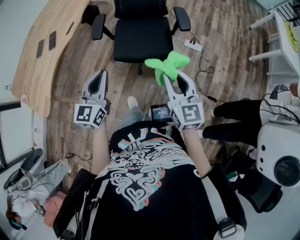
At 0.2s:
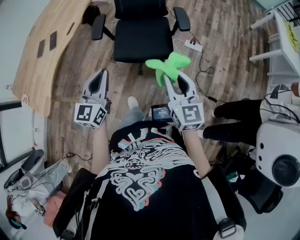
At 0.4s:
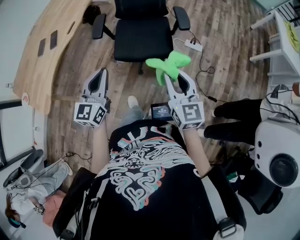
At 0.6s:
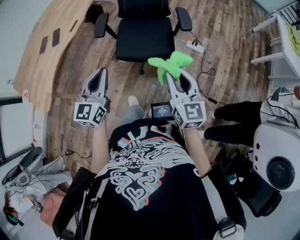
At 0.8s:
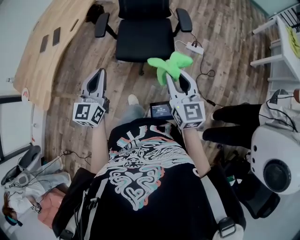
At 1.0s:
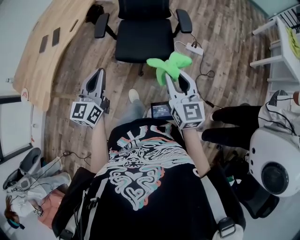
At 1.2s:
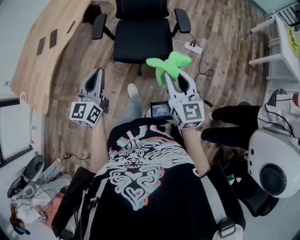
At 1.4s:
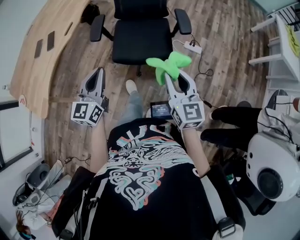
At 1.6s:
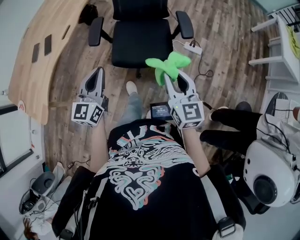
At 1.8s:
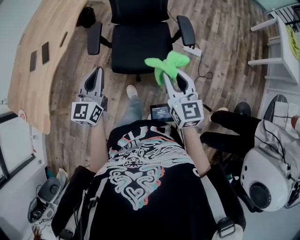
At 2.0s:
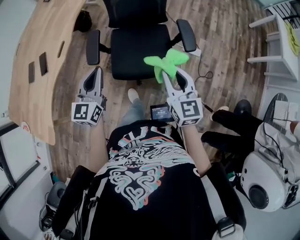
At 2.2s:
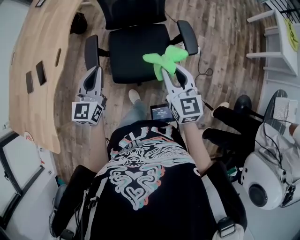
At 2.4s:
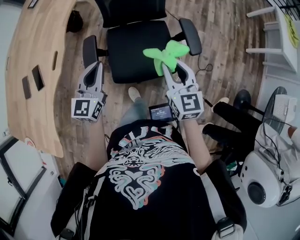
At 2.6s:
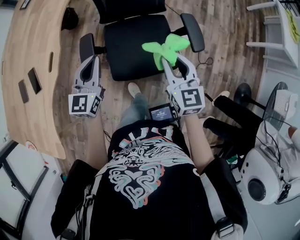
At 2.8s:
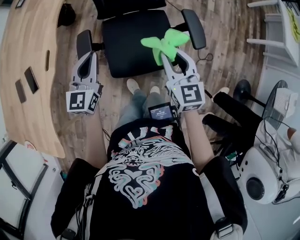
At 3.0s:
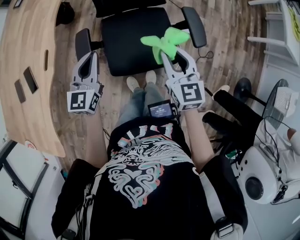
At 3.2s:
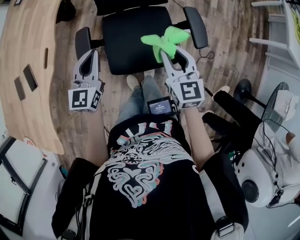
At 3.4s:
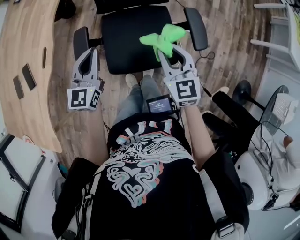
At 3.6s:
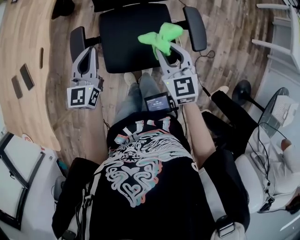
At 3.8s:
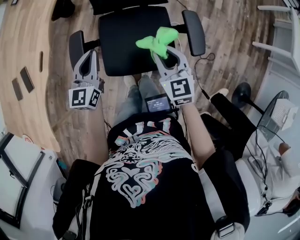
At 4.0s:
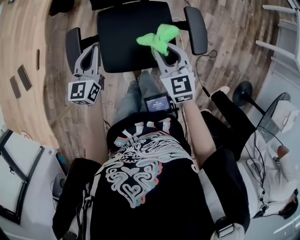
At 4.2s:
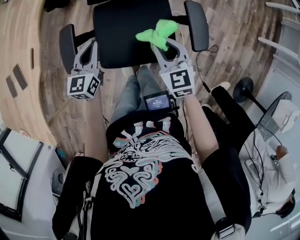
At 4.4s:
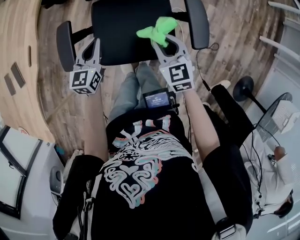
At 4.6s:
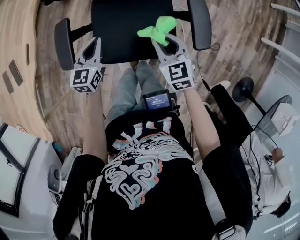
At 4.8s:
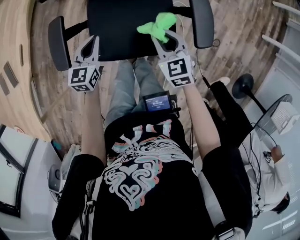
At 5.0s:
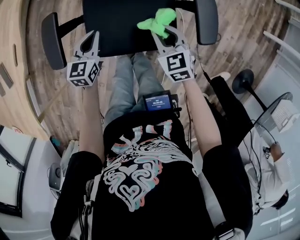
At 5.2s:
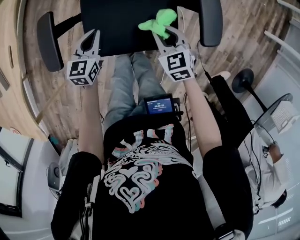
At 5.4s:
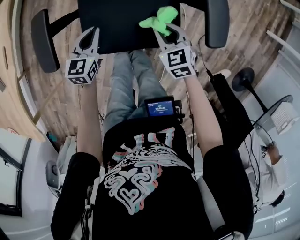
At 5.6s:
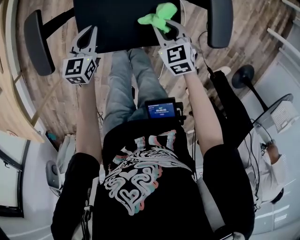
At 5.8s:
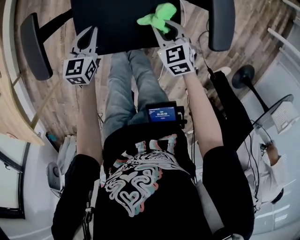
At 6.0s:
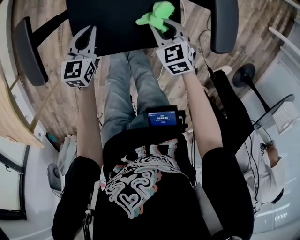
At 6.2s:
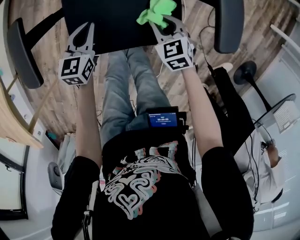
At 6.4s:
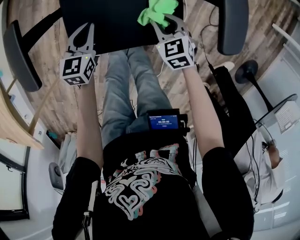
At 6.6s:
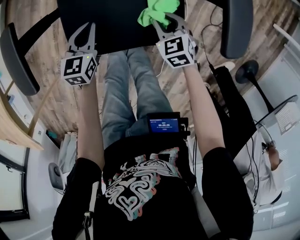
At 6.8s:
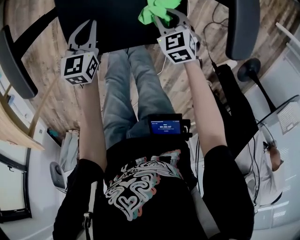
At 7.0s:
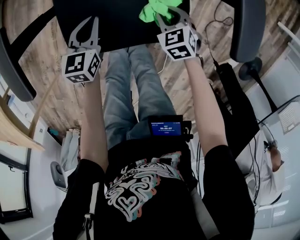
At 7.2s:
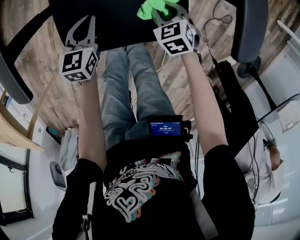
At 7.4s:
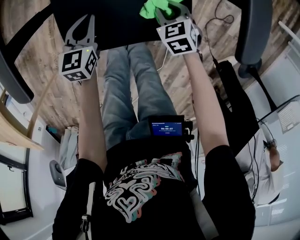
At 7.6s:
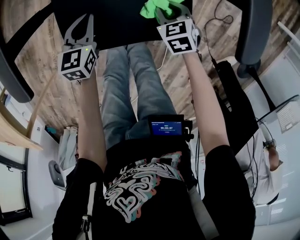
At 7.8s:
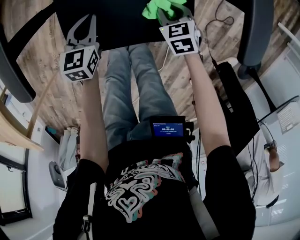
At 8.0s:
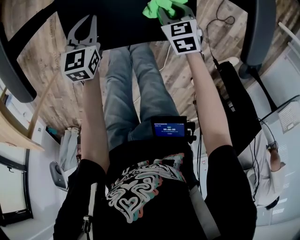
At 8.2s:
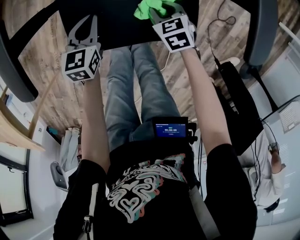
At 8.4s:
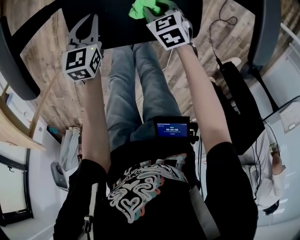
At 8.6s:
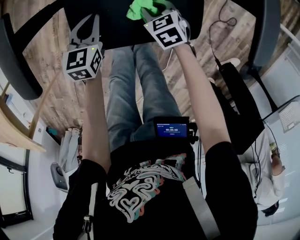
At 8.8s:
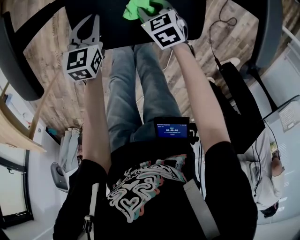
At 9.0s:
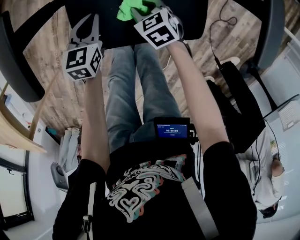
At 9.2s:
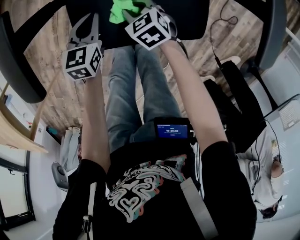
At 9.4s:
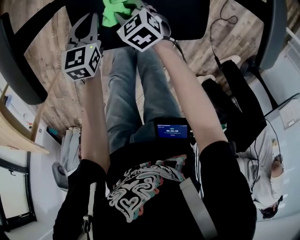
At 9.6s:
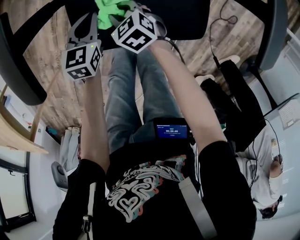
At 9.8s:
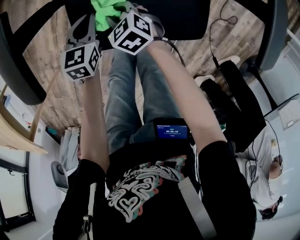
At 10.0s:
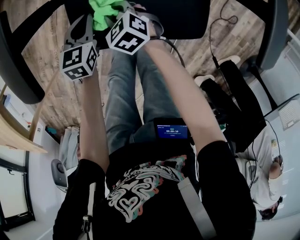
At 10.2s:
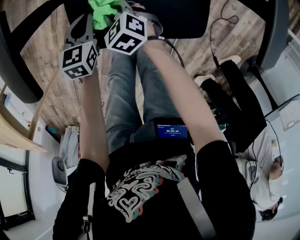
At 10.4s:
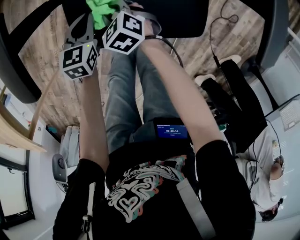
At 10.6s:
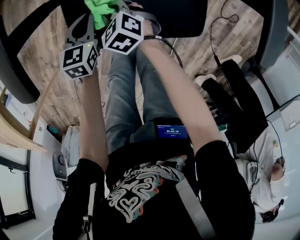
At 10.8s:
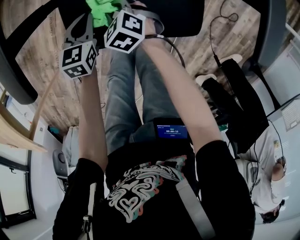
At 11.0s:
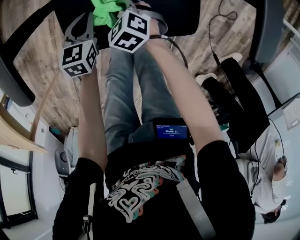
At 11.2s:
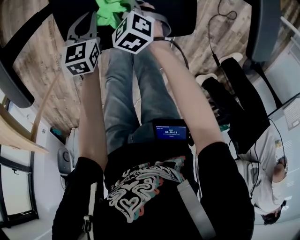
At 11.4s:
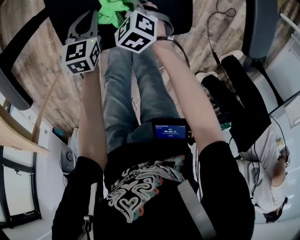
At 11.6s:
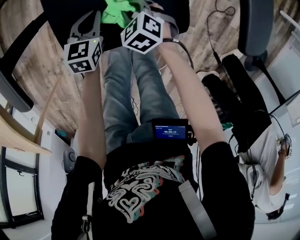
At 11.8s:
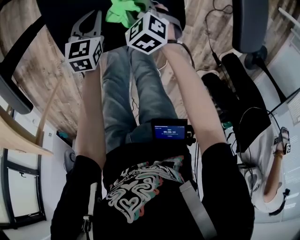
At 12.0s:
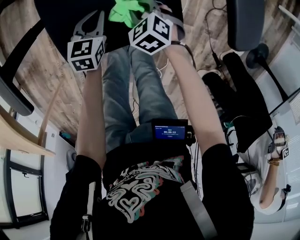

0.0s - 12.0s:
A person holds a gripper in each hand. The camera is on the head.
0.0s - 1.6s: The grippers both shift forward by some 5 cm.
1.6s - 3.0s: The grippers both shift forward by roughly 25 cm.
3.0s - 4.4s: The right gripper travels downward by some 15 cm, and changes its angle by some 20 degrees. The left gripper shifts some 15 cm downward and to the right.
4.4s - 6.0s: Both grippers travel together downward, approximately 20 cm.
6.0s - 7.6s: Both grippers move downward, about 10 cm.
7.6s - 9.0s: The right gripper travels to the left by about 10 cm.
9.0s - 10.4s: The right gripper heads to the left, covering about 10 cm.
10.4s - 12.0s: The left gripper shifts roughly 10 cm to the right, while the right gripper is displaced to the right by some 15 cm.

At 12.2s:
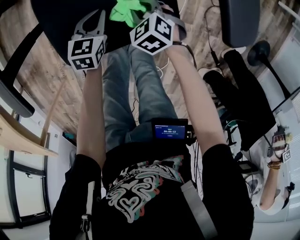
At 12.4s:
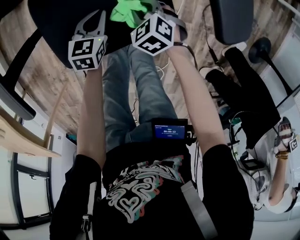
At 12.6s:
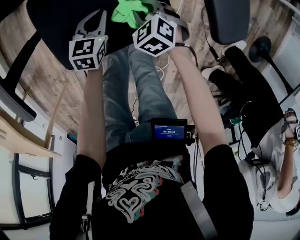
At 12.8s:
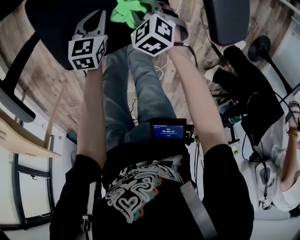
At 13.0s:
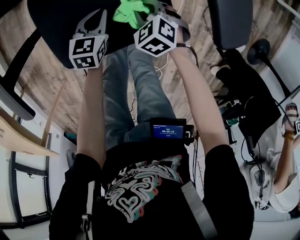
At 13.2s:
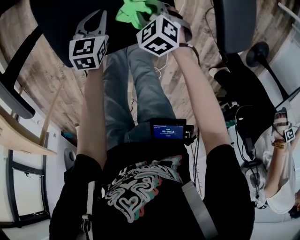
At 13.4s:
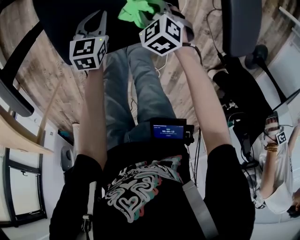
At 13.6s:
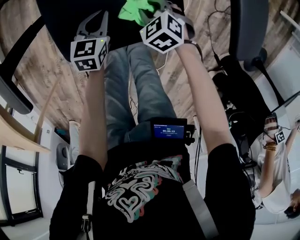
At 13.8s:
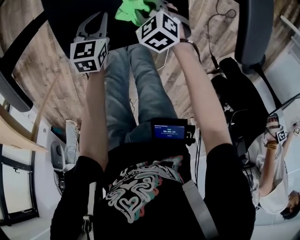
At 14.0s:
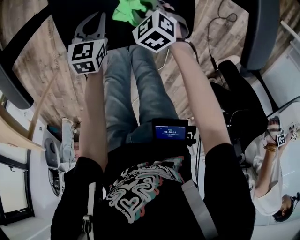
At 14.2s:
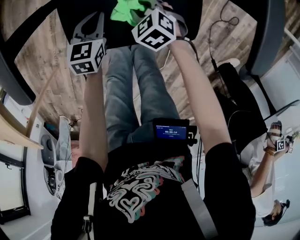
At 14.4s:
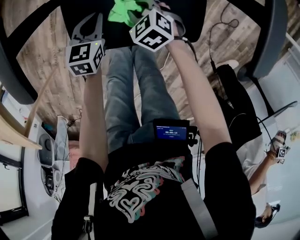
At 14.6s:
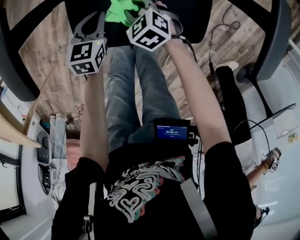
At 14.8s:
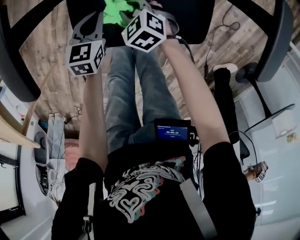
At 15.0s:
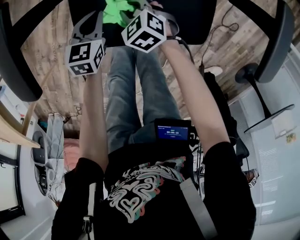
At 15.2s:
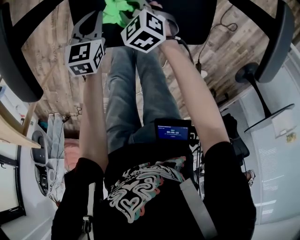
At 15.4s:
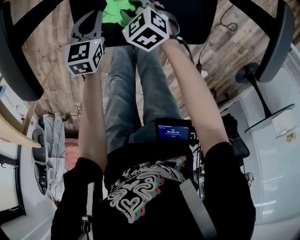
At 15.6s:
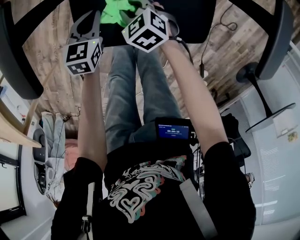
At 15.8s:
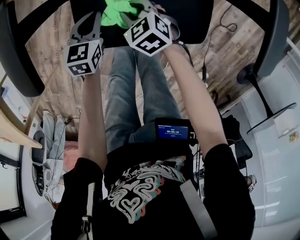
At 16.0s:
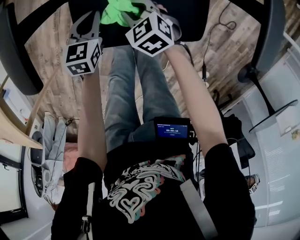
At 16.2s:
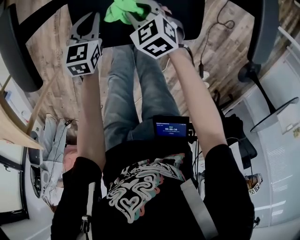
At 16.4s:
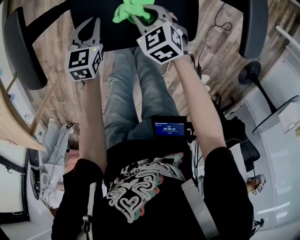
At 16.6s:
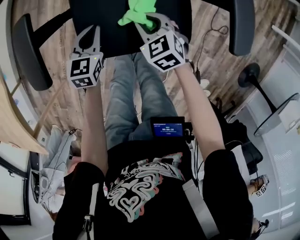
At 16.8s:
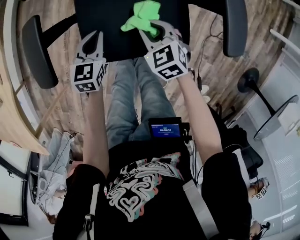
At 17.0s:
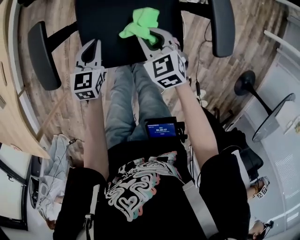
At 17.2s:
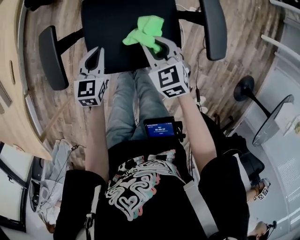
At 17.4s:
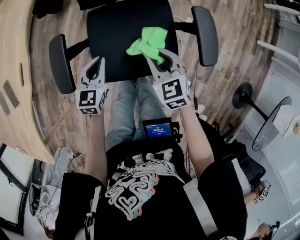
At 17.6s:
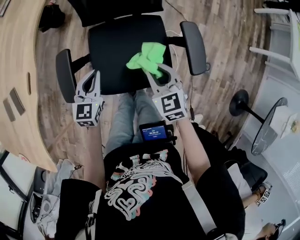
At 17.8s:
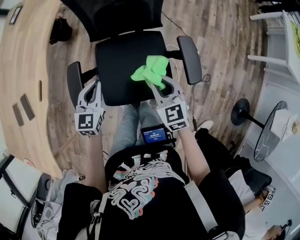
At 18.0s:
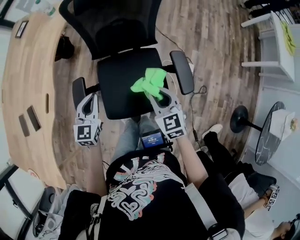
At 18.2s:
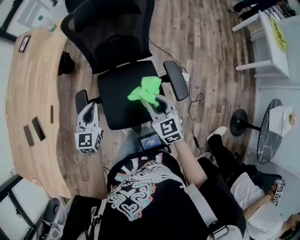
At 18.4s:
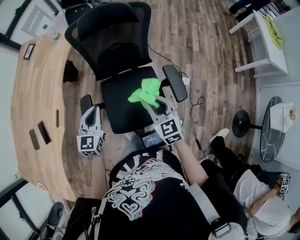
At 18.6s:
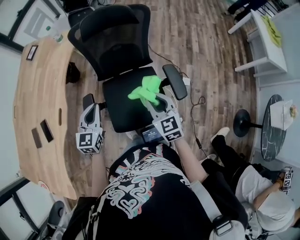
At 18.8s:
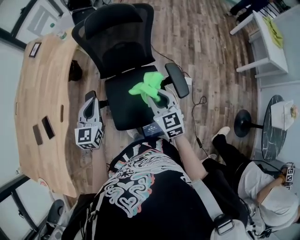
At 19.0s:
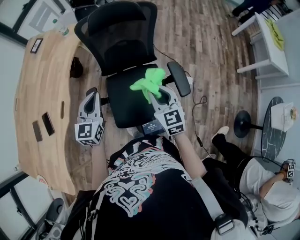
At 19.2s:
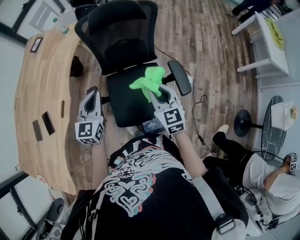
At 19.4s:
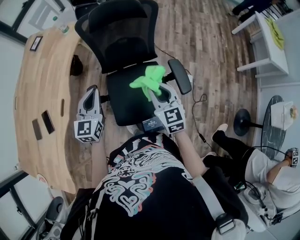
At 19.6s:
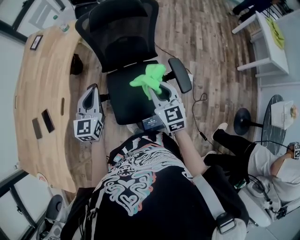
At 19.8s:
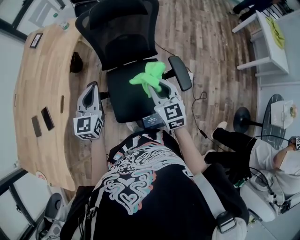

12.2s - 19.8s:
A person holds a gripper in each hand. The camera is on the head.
12.2s - 13.8s: There are only small adjustments of the grippers.
13.8s - 15.2s: Both grippers travel together to the left, roughly 10 cm.
15.2s - 16.8s: The left gripper goes about 20 cm upward. The right gripper travels upward, to the right and backward by approximately 30 cm, and swivels some 30 degrees.
16.8s - 18.2s: Both grippers travel together upward, roughly 30 cm. The right gripper swivels some 20 degrees; the left gripper changes its angle by approximately 20 degrees.
18.2s - 19.8s: The grippers both shift upward by approximately 10 cm.

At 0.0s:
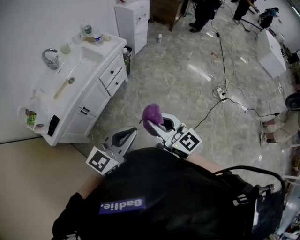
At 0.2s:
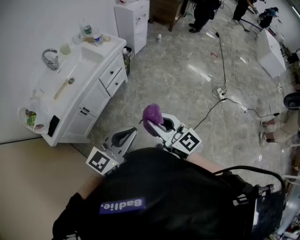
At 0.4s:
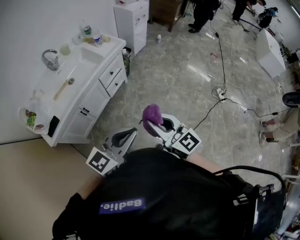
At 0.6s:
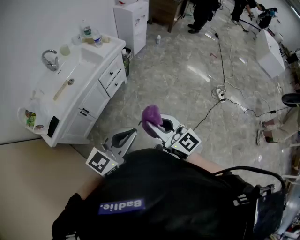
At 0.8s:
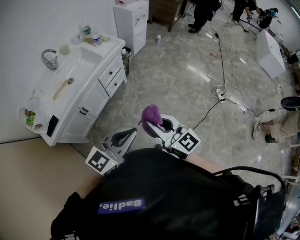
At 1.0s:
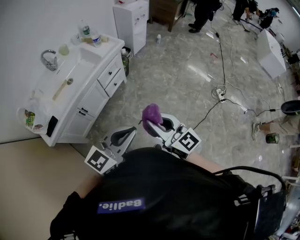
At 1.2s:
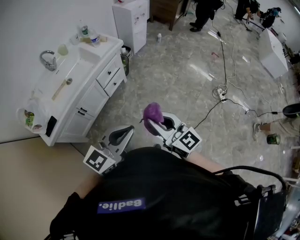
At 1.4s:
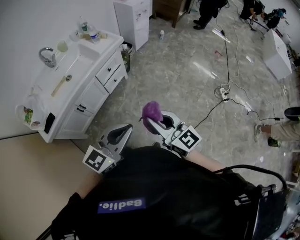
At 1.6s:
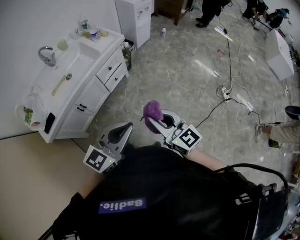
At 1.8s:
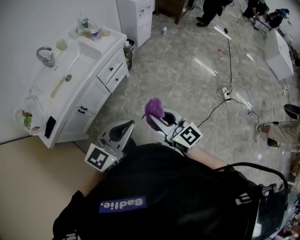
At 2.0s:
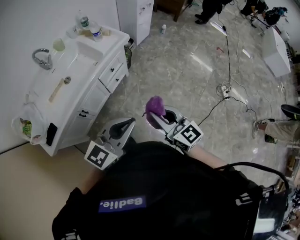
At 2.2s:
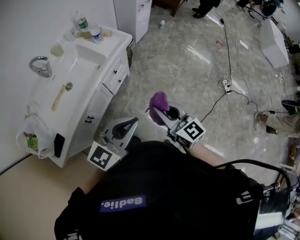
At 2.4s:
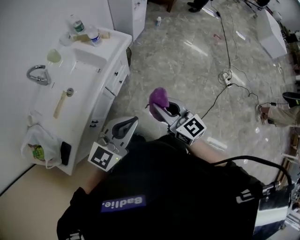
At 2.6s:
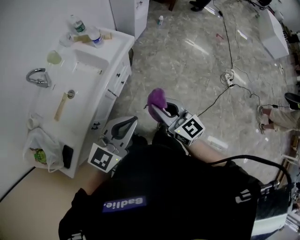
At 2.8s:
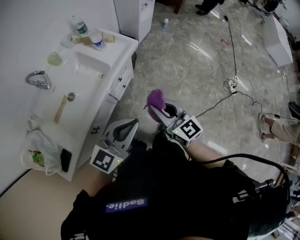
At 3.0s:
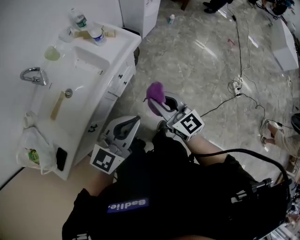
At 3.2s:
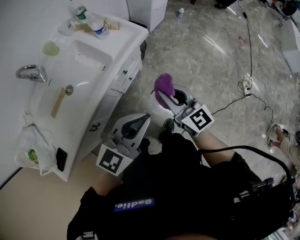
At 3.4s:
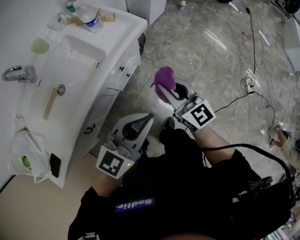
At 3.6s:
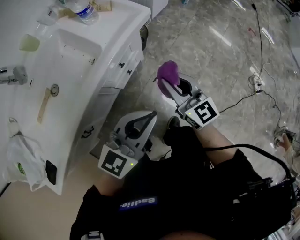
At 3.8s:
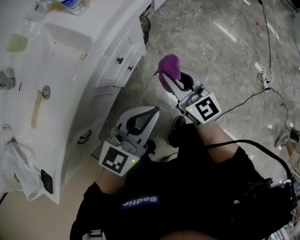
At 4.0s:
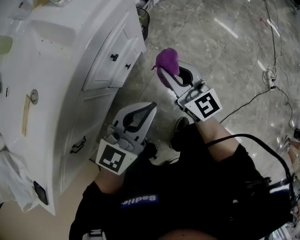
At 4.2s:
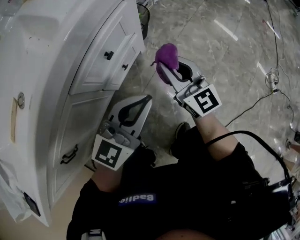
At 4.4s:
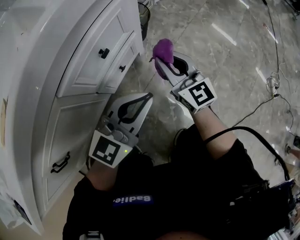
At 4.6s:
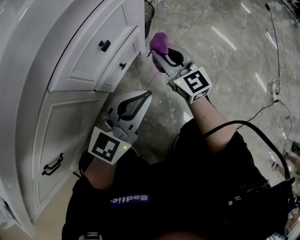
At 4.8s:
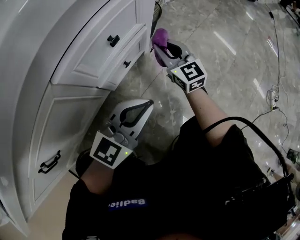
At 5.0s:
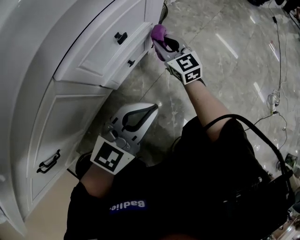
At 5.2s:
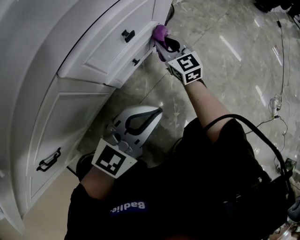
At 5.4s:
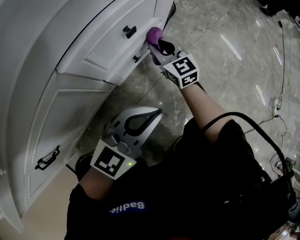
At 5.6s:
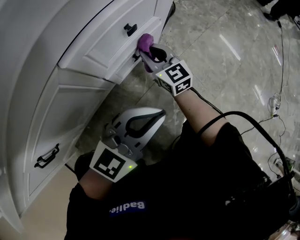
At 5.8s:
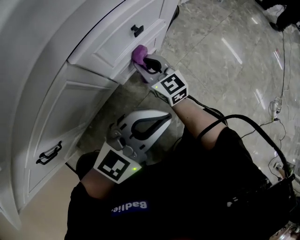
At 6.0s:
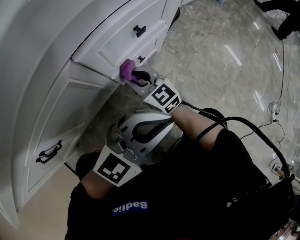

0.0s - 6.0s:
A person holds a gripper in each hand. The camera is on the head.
0.0s - 1.6s: The right gripper moves to the right, some 5 cm. The left gripper changes place by some 5 cm.
1.6s - 3.0s: Both grippers move forward and to the left, about 35 cm.
3.0s - 4.4s: Both grippers move downward, about 50 cm.
4.4s - 6.0s: The left gripper heads backward, covering approximately 5 cm, while the right gripper is displaced to the left and downward by about 25 cm, and swivels about 30 degrees.
